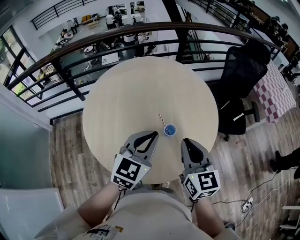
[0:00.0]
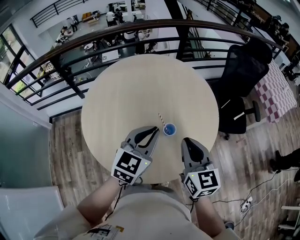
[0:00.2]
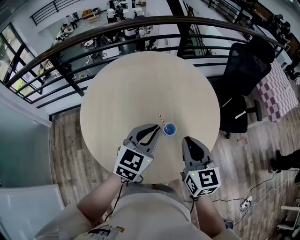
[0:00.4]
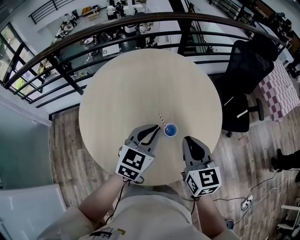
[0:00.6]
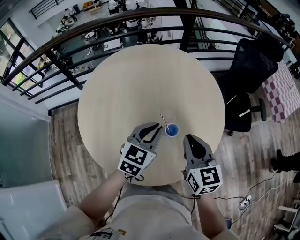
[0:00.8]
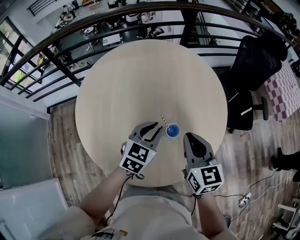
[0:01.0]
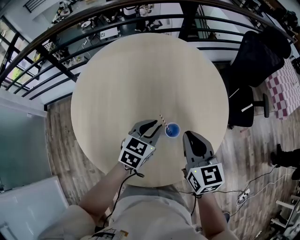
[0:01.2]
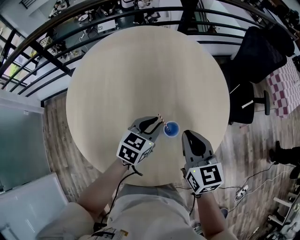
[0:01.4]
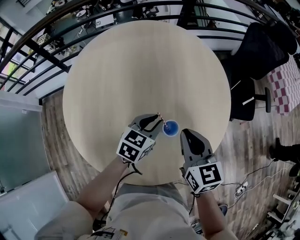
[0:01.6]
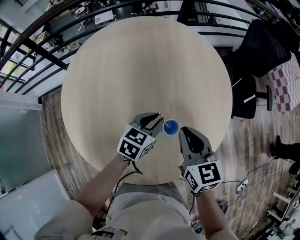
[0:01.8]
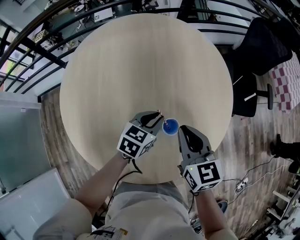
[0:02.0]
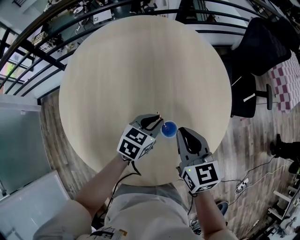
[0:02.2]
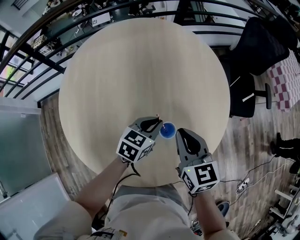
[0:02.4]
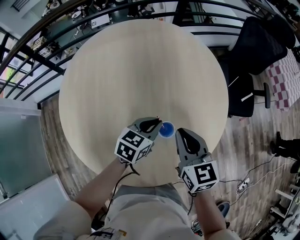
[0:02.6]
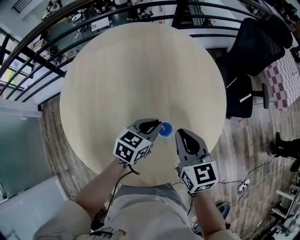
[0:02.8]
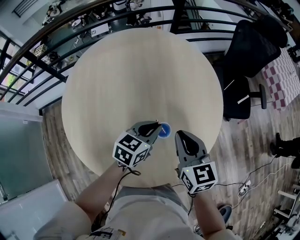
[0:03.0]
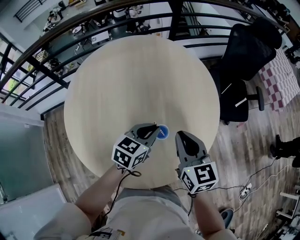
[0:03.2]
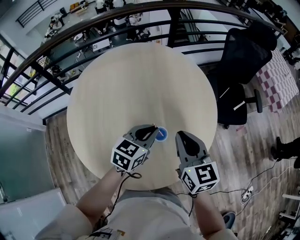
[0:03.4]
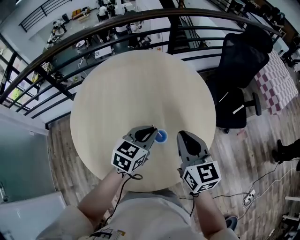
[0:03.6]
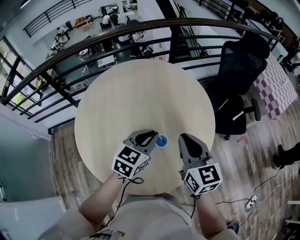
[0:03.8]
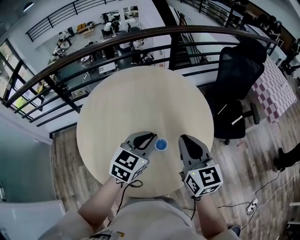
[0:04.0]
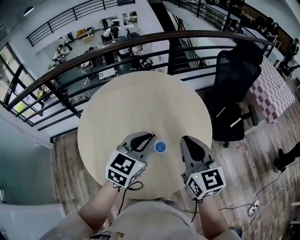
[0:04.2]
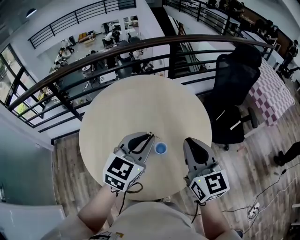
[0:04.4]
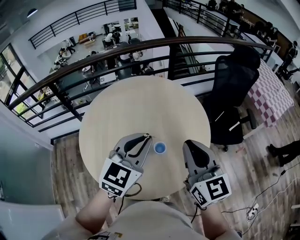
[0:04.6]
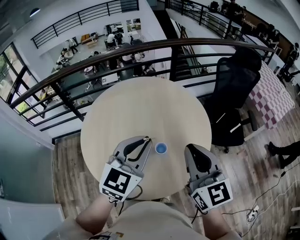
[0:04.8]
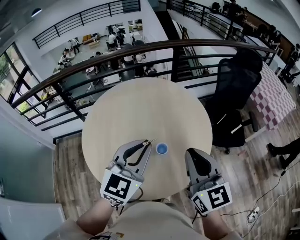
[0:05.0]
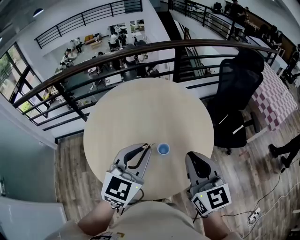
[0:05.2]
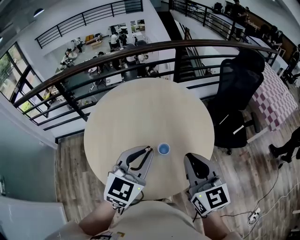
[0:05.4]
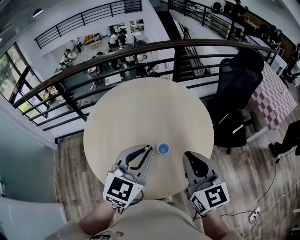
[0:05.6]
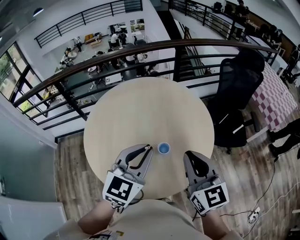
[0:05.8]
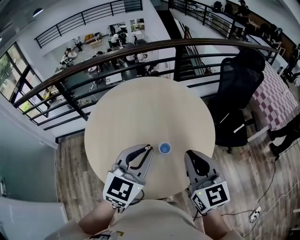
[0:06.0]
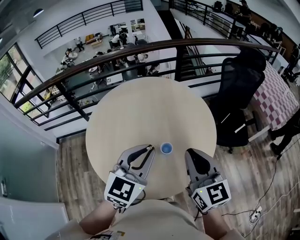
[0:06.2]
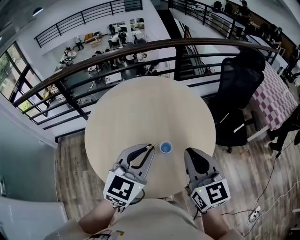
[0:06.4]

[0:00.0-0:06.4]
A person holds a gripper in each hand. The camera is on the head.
0:00.0 to 0:01.6: The grippers both shift downward and forward by some 25 cm. The left gripper rotates about 30 degrees.
0:01.6 to 0:03.2: The left gripper heads upward, covering approximately 5 cm. The right gripper moves approximately 5 cm.
0:03.2 to 0:04.8: Both grippers move upward and backward, approximately 25 cm. The left gripper changes its angle by approximately 40 degrees, while the right gripper turns by about 20 degrees.
0:04.8 to 0:06.4: There are only small adjustments of the grippers.

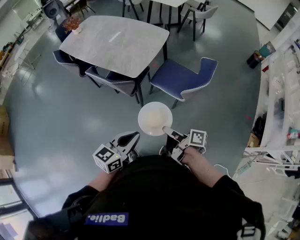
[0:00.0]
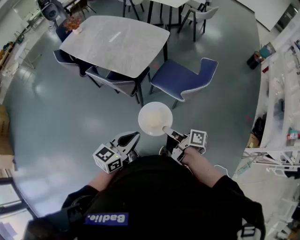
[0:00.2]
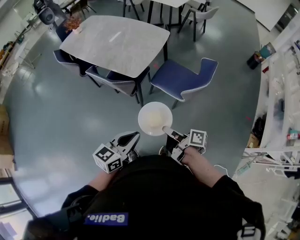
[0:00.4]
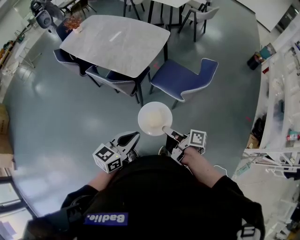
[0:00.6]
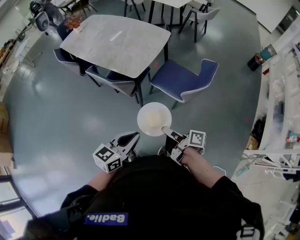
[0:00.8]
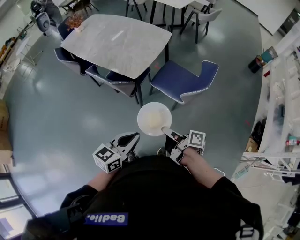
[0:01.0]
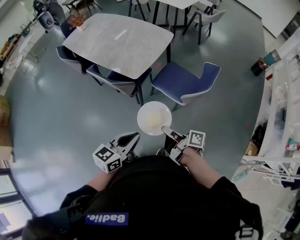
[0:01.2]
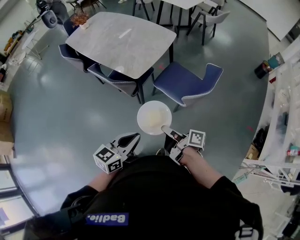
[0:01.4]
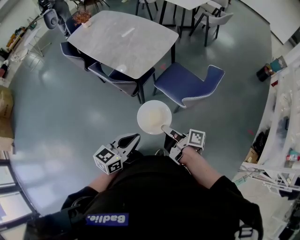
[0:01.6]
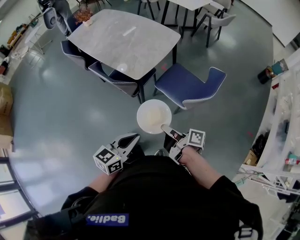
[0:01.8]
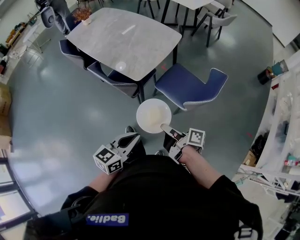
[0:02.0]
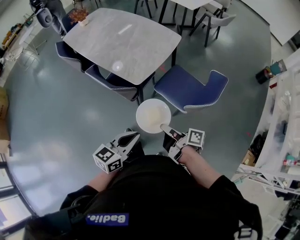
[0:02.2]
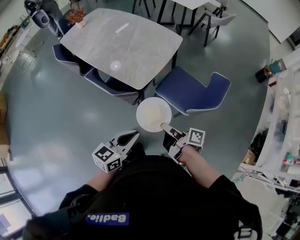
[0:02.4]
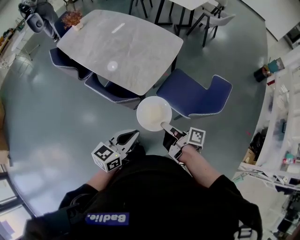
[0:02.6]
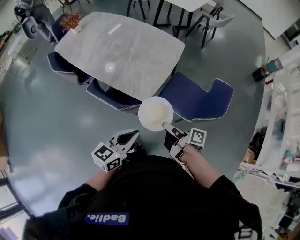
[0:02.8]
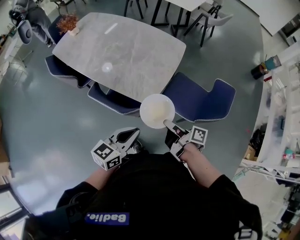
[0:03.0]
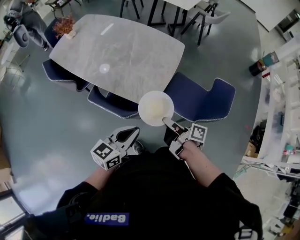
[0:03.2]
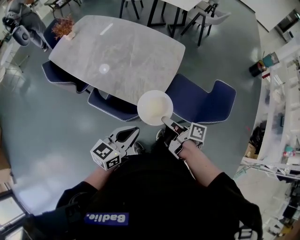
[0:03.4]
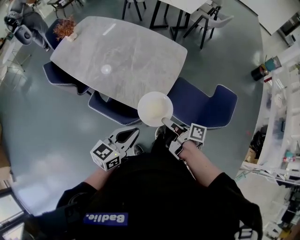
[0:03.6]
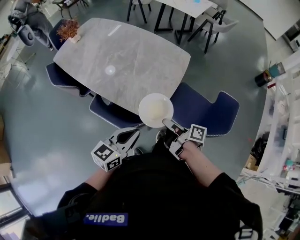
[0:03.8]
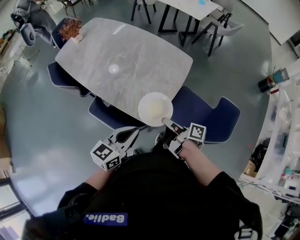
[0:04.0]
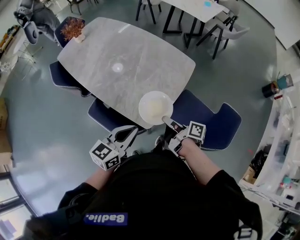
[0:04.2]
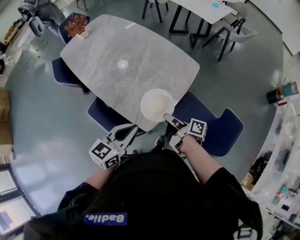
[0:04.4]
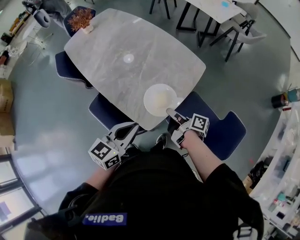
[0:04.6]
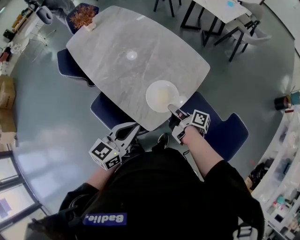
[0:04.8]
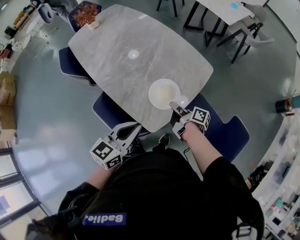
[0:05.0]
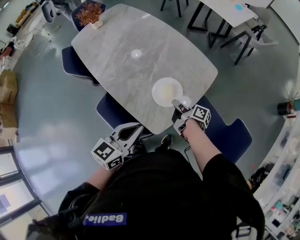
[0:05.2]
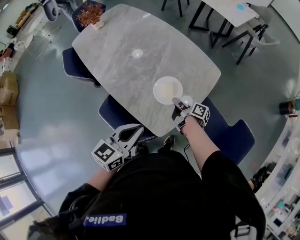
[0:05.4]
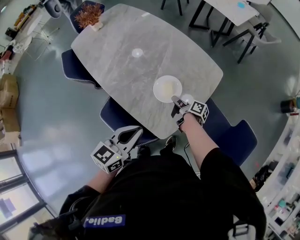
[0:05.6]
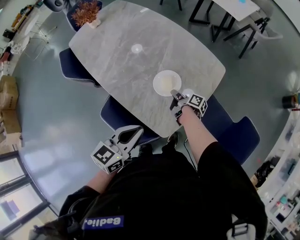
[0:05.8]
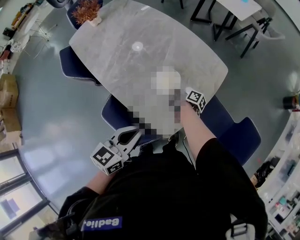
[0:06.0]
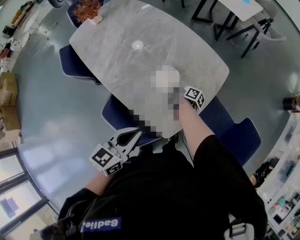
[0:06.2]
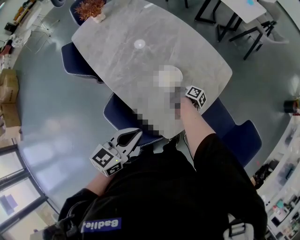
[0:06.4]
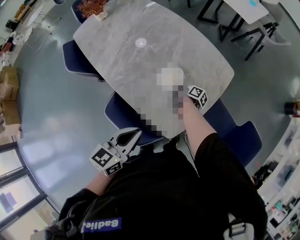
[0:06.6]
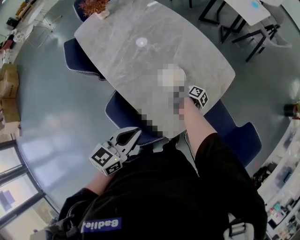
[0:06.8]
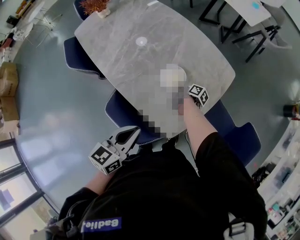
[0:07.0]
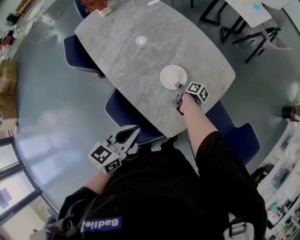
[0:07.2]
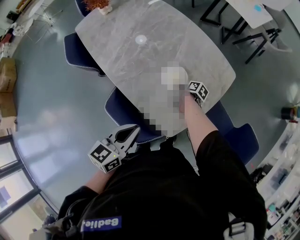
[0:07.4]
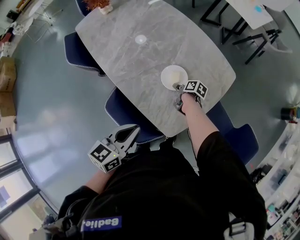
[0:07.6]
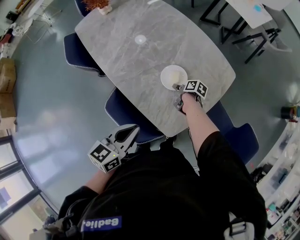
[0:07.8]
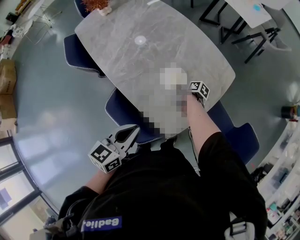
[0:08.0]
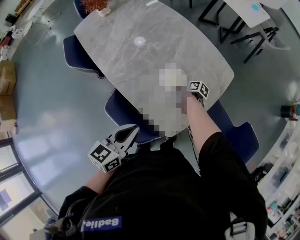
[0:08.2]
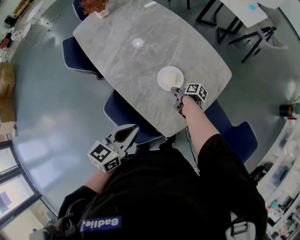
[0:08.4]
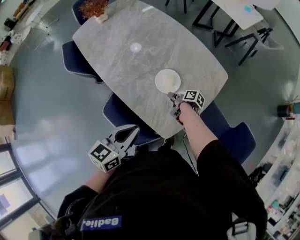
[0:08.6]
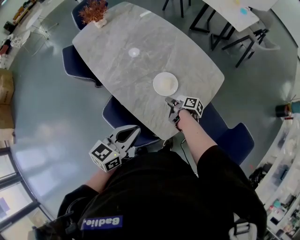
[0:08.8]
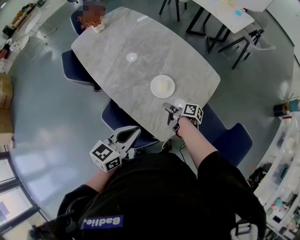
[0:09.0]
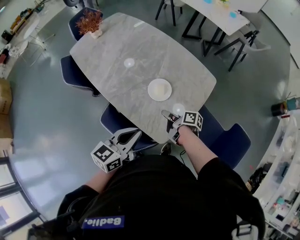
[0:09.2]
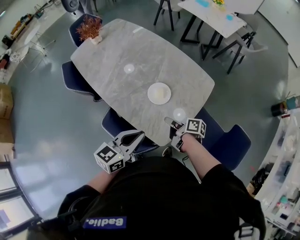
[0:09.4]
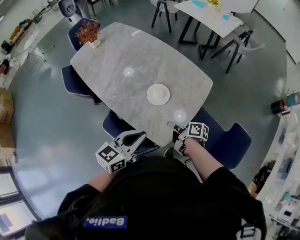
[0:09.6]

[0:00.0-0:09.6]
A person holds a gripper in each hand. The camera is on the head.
0:01.6 to 0:03.2: The left gripper ends up some 30 cm from where it was.
0:03.2 to 0:04.8: The left gripper moves approximately 20 cm.
0:04.8 to 0:06.4: The left gripper changes place by about 10 cm.
0:08.0 to 0:09.6: The left gripper shifts by approximately 10 cm.

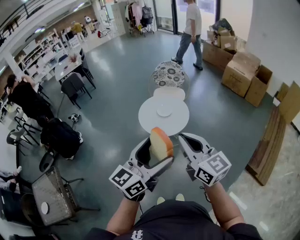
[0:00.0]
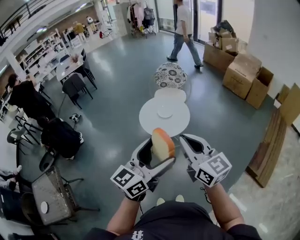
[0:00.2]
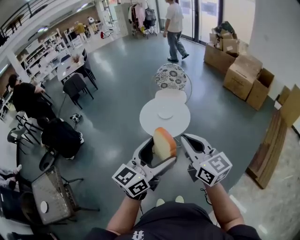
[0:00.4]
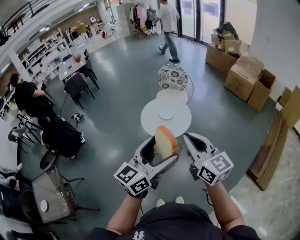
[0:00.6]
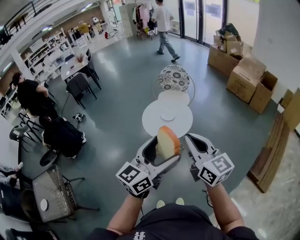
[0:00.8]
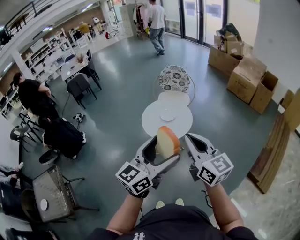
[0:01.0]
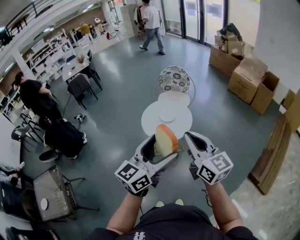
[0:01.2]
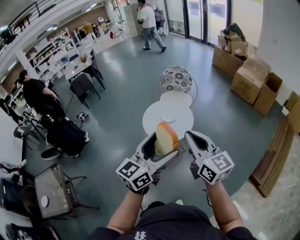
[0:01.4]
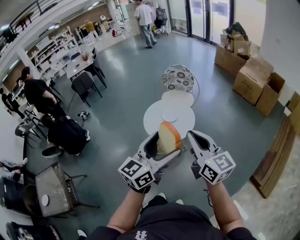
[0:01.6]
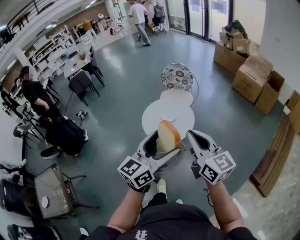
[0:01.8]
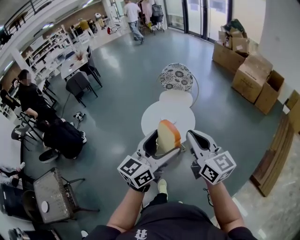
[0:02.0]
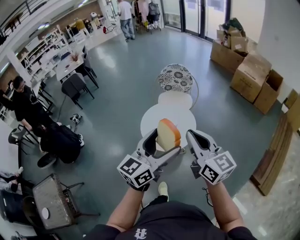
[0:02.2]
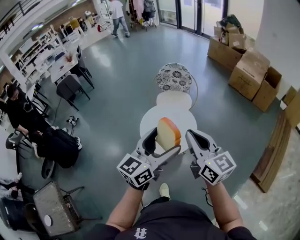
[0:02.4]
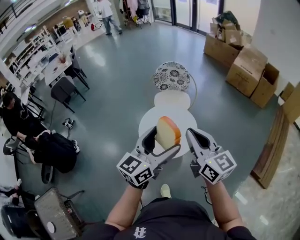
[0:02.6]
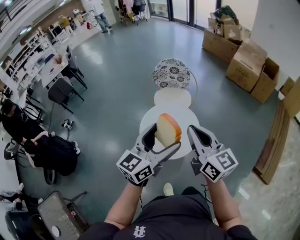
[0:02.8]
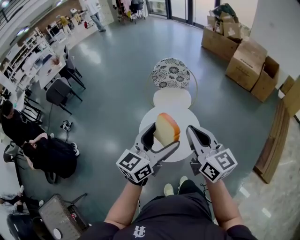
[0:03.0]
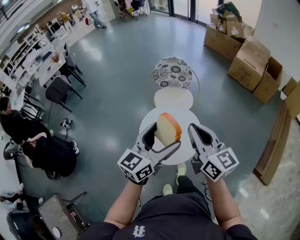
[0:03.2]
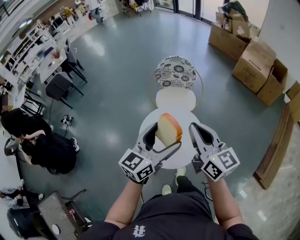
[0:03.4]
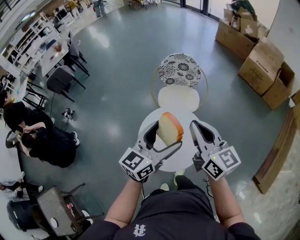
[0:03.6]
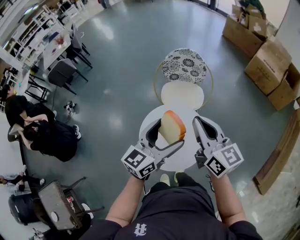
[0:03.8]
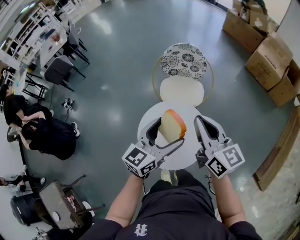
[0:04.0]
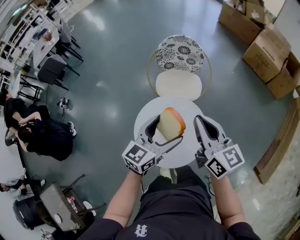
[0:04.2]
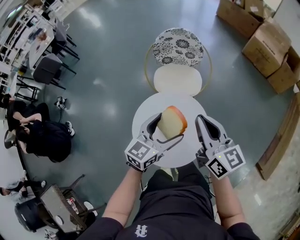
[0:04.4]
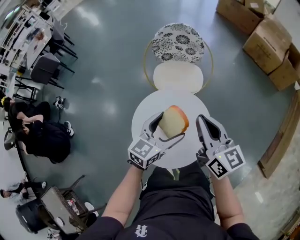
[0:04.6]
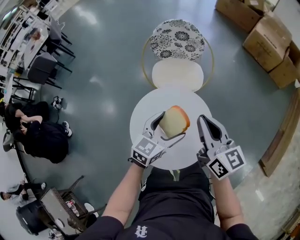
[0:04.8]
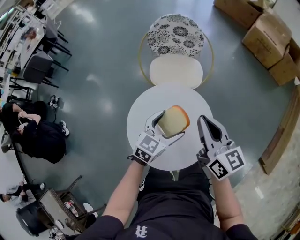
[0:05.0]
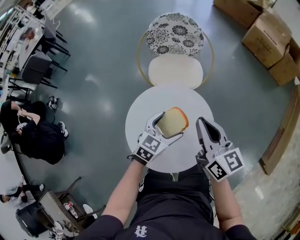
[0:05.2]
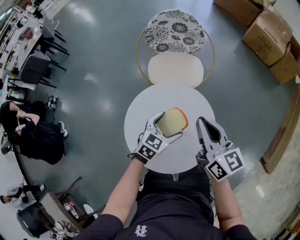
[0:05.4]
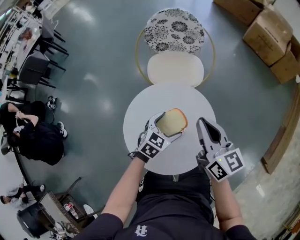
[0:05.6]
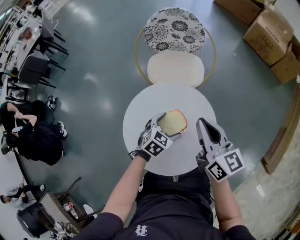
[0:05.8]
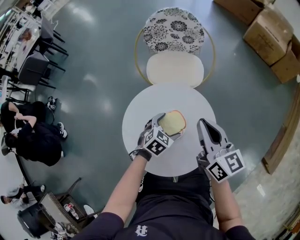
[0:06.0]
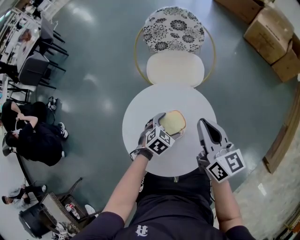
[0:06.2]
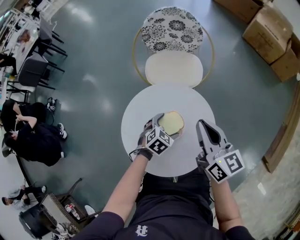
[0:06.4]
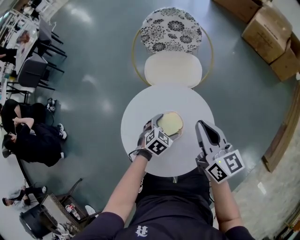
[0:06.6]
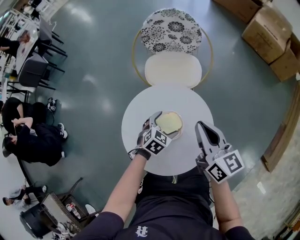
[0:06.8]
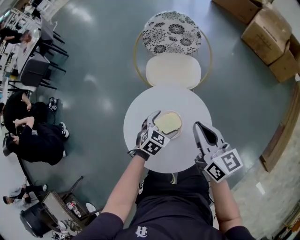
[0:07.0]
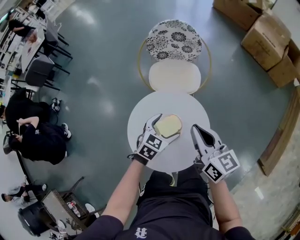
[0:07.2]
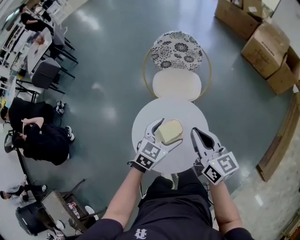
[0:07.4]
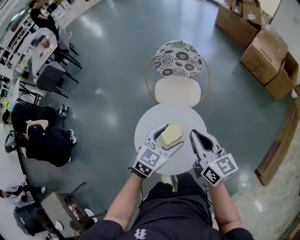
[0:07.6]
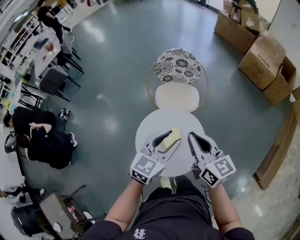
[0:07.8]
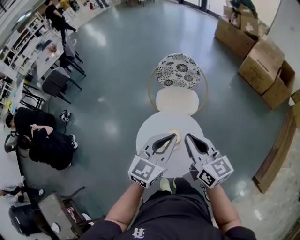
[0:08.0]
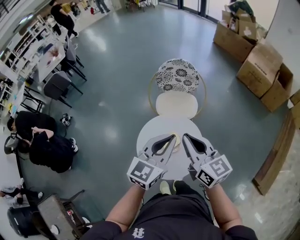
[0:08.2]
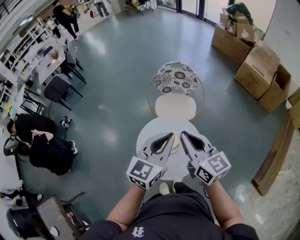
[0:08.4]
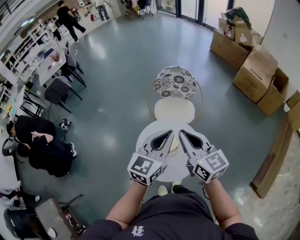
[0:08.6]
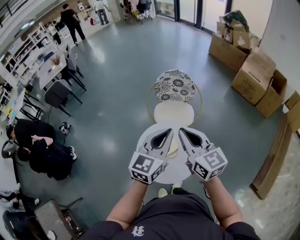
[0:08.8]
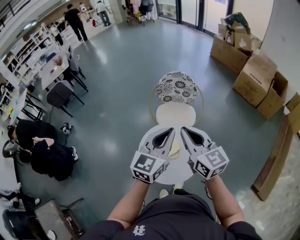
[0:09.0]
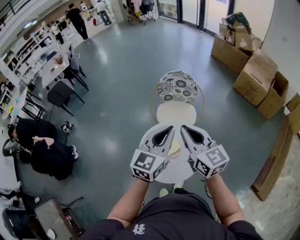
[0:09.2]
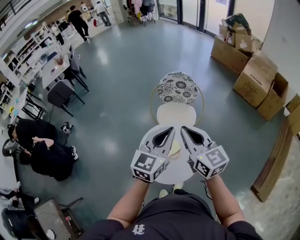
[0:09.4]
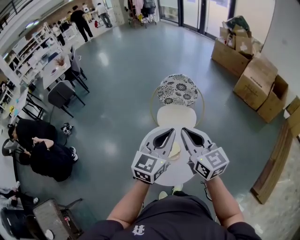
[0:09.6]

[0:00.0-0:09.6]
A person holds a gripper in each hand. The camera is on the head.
0:00.0 to 0:01.6: The left gripper is displaced forward and to the right by about 10 cm, while the right gripper travels to the right and forward by roughly 10 cm.
0:01.6 to 0:03.2: The two grippers go about 30 cm forward.
0:03.2 to 0:04.8: The grippers both shift downward and forward by roughly 30 cm. The left gripper turns by some 20 degrees.
0:04.8 to 0:06.4: The left gripper goes some 20 cm downward, and tips its fingers downward by about 30 degrees, while the right gripper heads downward, covering approximately 10 cm.
0:06.4 to 0:08.0: The right gripper is displaced upward by some 20 cm. Meanwhile the left gripper shifts approximately 40 cm upward, angles its fingers upward, by about 50 degrees, and closes.
0:08.0 to 0:09.6: Both grippers travel together upward, about 5 cm.
